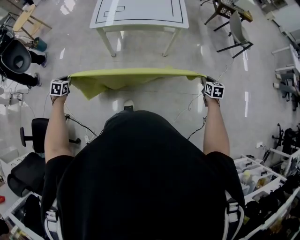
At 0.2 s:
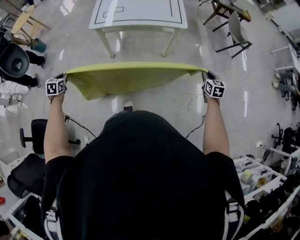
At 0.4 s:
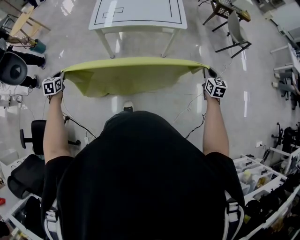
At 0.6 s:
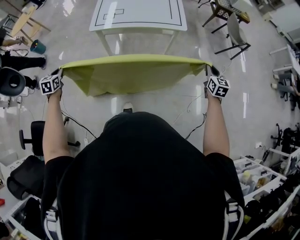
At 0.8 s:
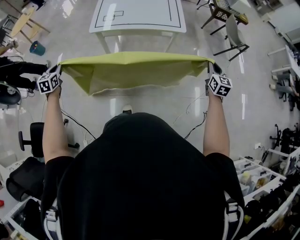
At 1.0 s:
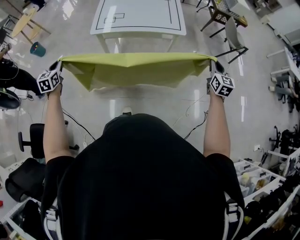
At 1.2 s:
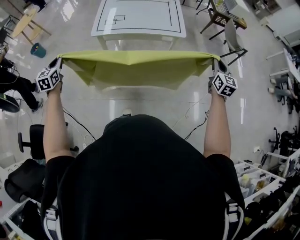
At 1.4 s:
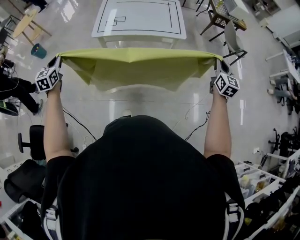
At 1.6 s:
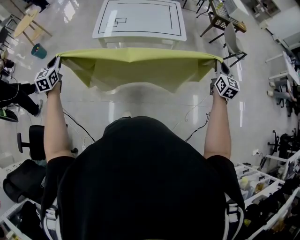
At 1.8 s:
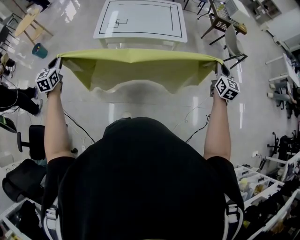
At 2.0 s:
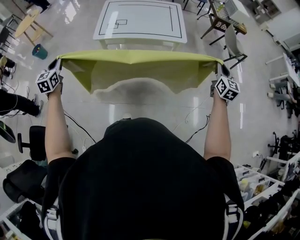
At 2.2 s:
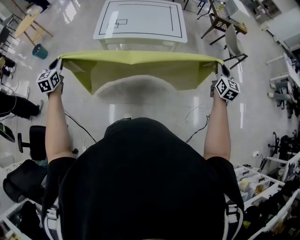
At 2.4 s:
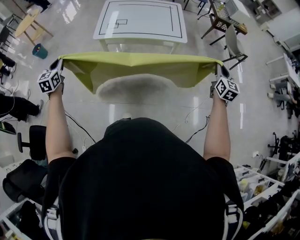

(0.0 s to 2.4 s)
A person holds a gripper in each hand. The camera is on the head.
0.0 s - 1.2 s: The left gripper travels upward and forward by about 20 cm, and points its fingers some 30 degrees further upward, while the right gripper shifts approximately 25 cm upward, and points its fingers roughly 30 degrees further upward.
1.2 s - 2.4 s: The grippers move only a little.

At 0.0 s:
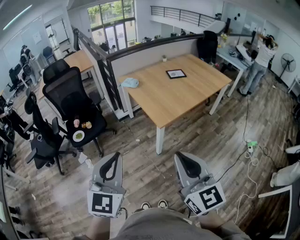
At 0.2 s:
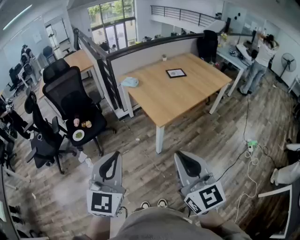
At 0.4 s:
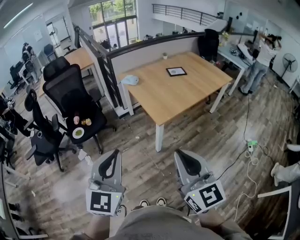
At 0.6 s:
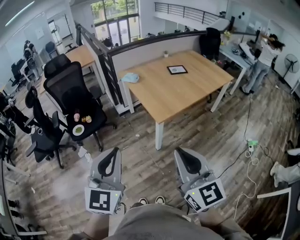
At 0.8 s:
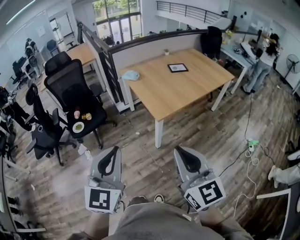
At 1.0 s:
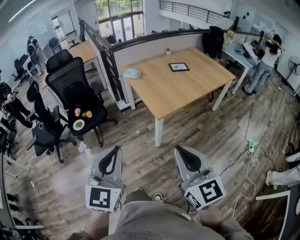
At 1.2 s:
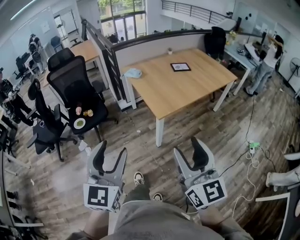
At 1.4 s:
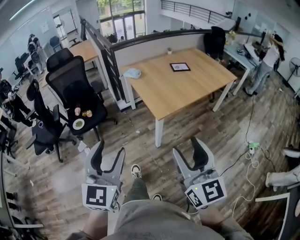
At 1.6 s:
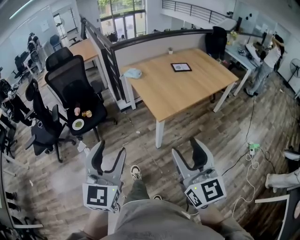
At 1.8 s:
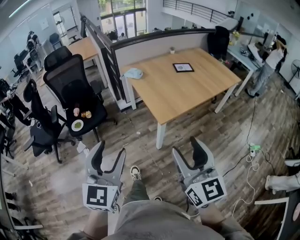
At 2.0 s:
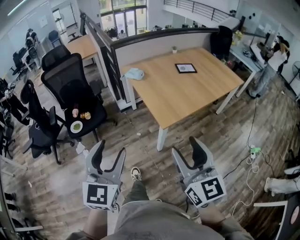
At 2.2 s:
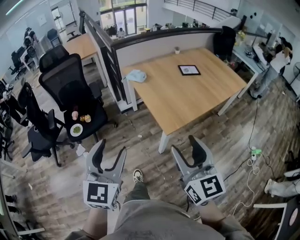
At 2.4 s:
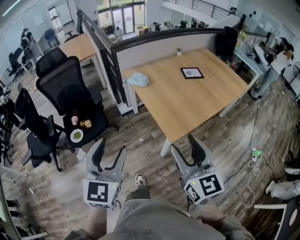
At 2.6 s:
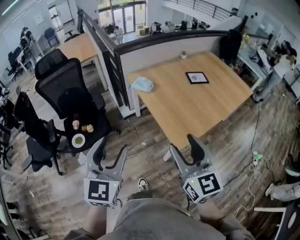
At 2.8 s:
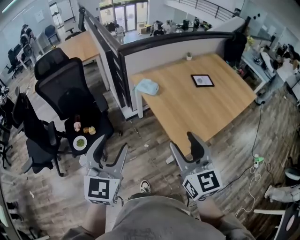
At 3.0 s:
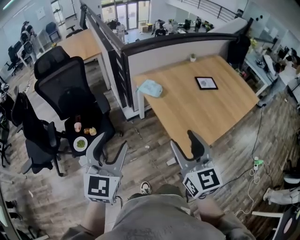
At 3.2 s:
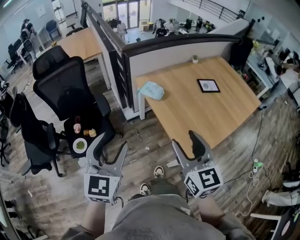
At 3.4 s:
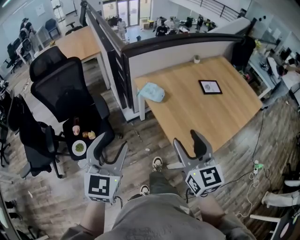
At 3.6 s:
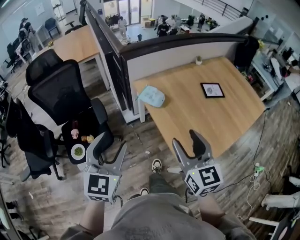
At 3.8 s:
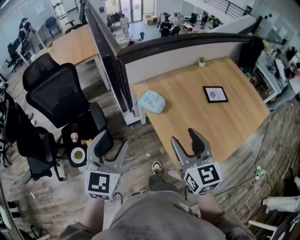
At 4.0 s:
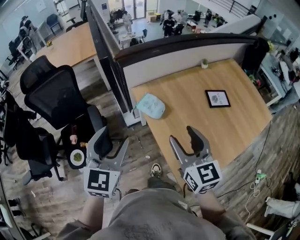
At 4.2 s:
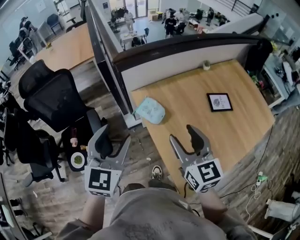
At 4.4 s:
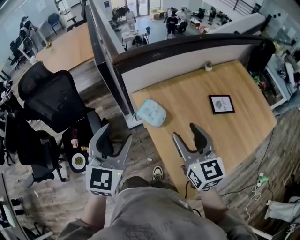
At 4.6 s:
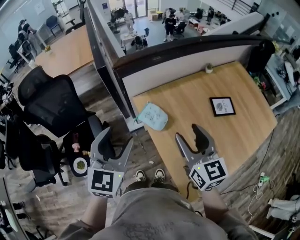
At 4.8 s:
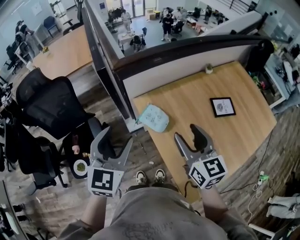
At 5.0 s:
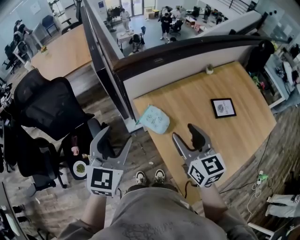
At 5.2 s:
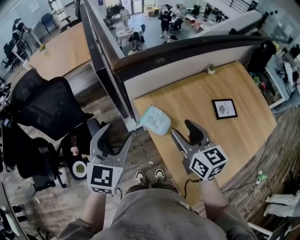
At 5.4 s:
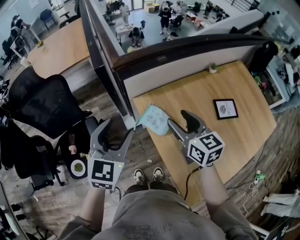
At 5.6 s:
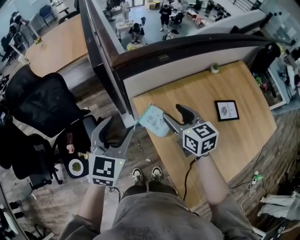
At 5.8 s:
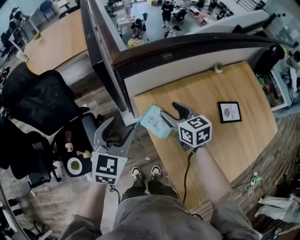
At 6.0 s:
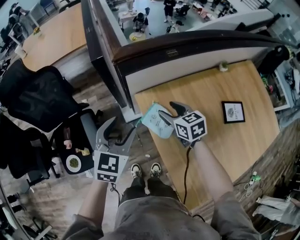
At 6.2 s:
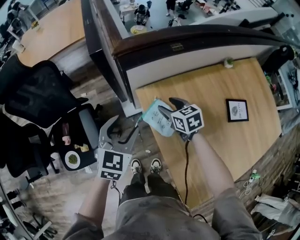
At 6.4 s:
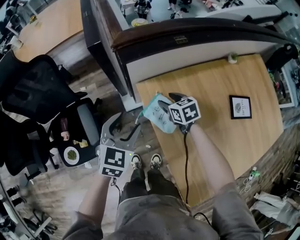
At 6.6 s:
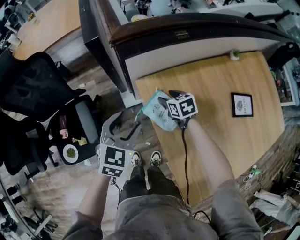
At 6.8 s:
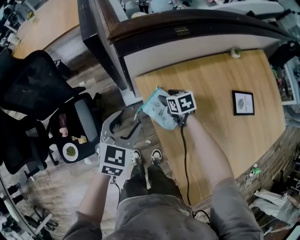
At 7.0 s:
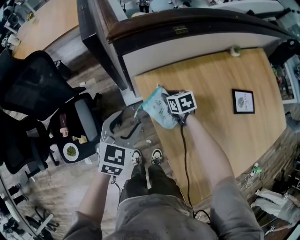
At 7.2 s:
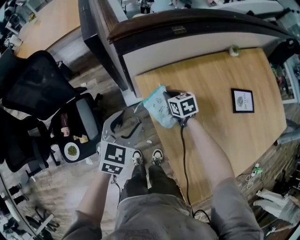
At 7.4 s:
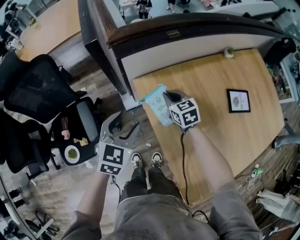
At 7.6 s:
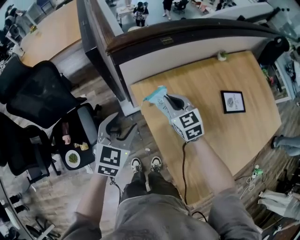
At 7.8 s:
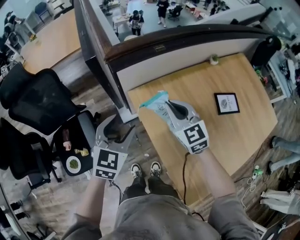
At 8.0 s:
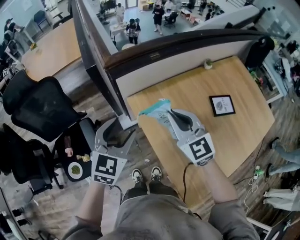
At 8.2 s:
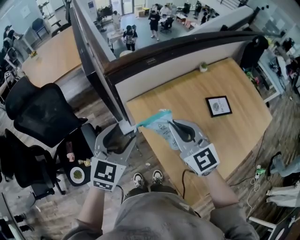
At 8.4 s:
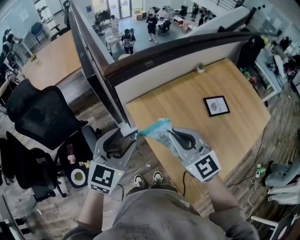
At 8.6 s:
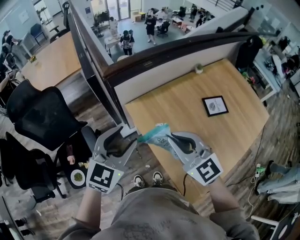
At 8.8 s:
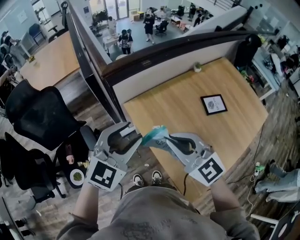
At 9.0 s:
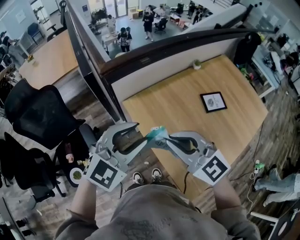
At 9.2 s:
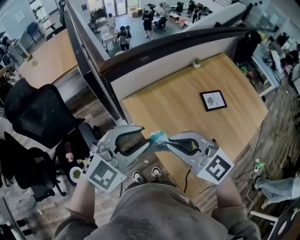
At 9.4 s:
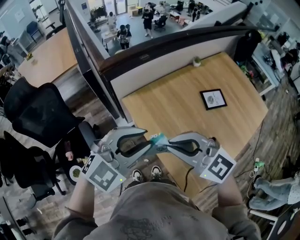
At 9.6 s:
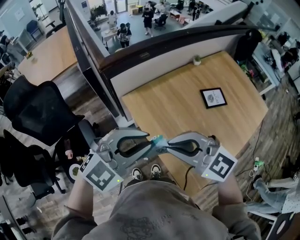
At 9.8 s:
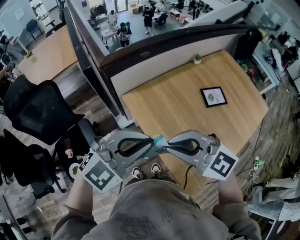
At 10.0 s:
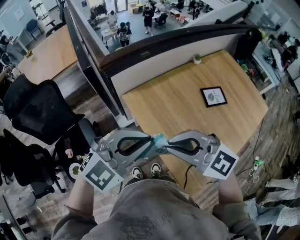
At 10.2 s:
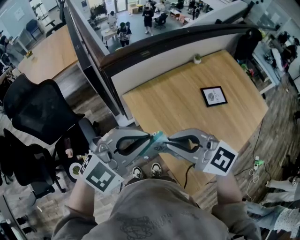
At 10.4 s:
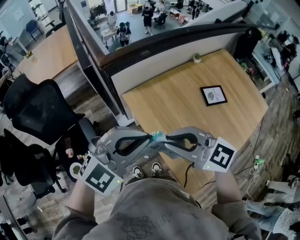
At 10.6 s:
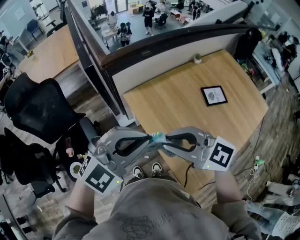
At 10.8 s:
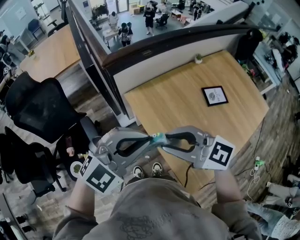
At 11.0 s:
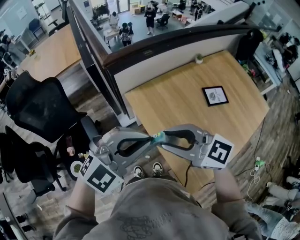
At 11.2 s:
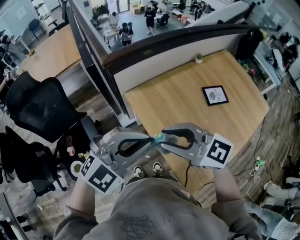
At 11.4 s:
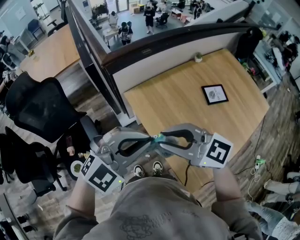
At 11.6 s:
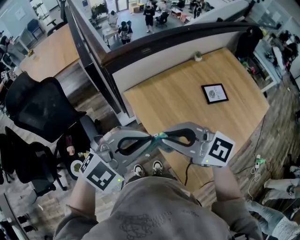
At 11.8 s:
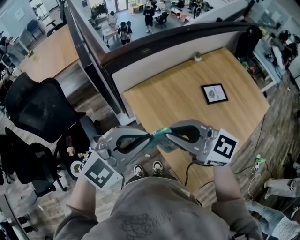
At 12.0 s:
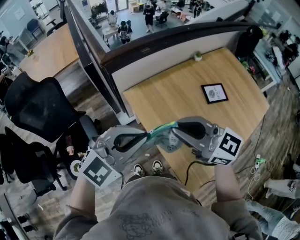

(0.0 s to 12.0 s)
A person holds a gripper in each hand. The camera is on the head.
0.0 s - 1.6 s: The left gripper opens; the right gripper shifts about 5 cm to the right, and opens up.
1.6 s - 3.0 s: The pair of grippers is taken forward and to the left, roughly 40 cm.
3.0 s - 4.4 s: Both grippers travel together forward, about 35 cm.
4.4 s - 6.0 s: The grippers both shift forward and downward by some 25 cm. The right gripper changes its angle by approximately 30 degrees.
6.0 s - 7.6 s: The right gripper reaches about 15 cm downward, then returns, changes its angle by approximately 20 degrees, and closes up.
7.6 s - 9.0 s: The right gripper shifts approximately 30 cm backward and upward, and rotates some 20 degrees. The left gripper moves upward, backward and to the right, some 25 cm, and rotates roughly 40 degrees.
9.0 s - 10.4 s: The left gripper closes up.
10.4 s - 12.0 s: There are only small adjustments of the grippers.

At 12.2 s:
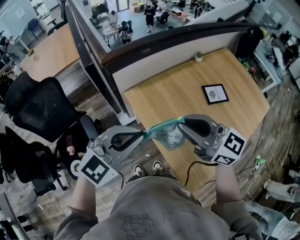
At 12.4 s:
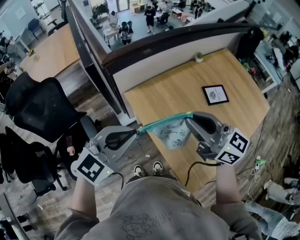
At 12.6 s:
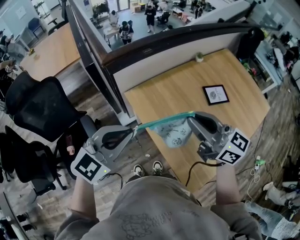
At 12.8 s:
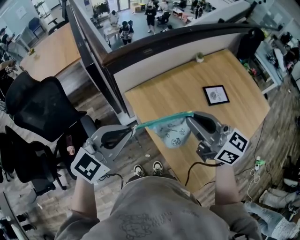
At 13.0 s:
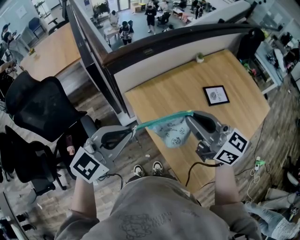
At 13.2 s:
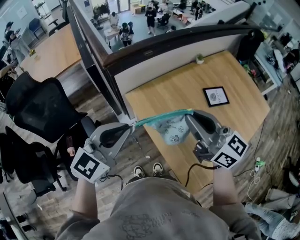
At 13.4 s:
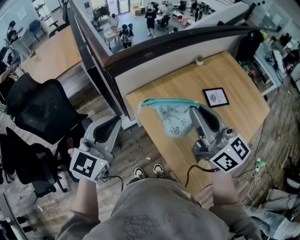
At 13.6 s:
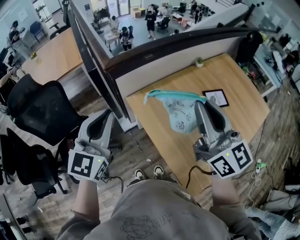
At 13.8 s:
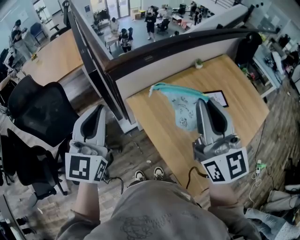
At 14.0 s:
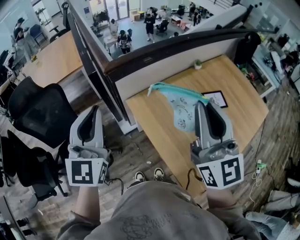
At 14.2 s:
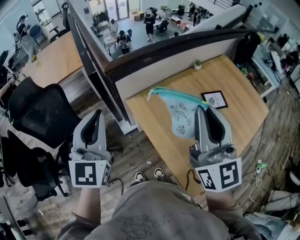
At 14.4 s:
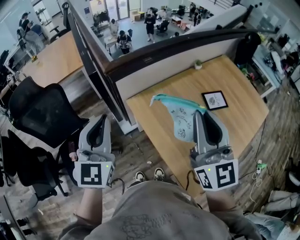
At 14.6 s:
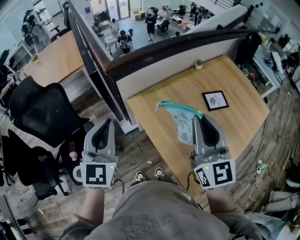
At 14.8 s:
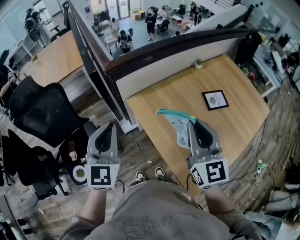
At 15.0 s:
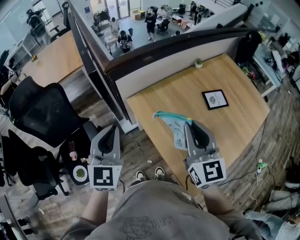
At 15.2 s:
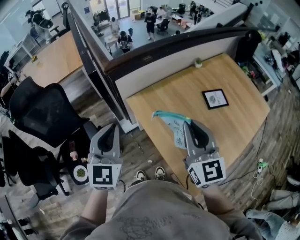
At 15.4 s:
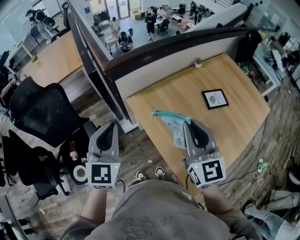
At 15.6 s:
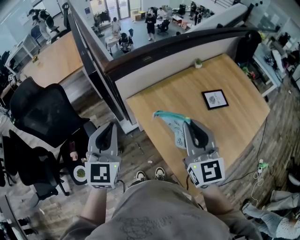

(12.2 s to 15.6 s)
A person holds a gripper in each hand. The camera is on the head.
12.2 s - 13.8 s: The left gripper goes approximately 15 cm to the left, upward and forward, and swivels about 50 degrees. The right gripper heads upward, covering some 10 cm, and swivels about 40 degrees.
13.8 s - 15.6 s: The grippers both shift downward by approximately 10 cm.

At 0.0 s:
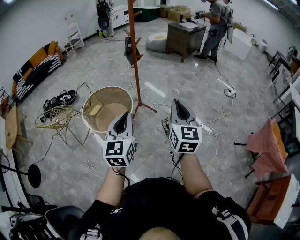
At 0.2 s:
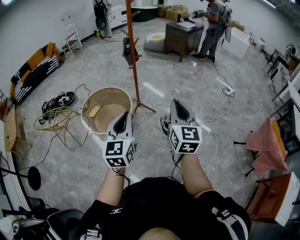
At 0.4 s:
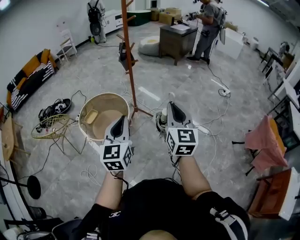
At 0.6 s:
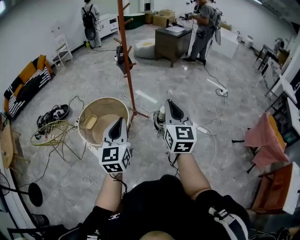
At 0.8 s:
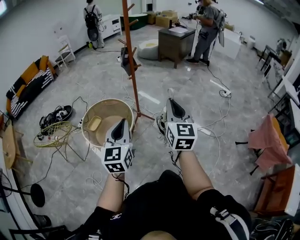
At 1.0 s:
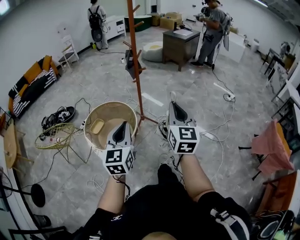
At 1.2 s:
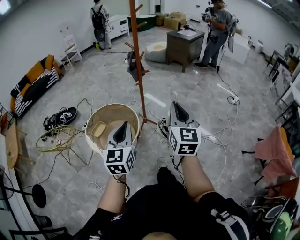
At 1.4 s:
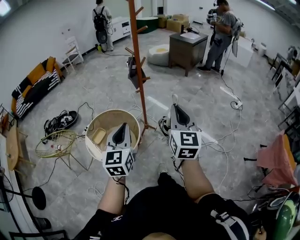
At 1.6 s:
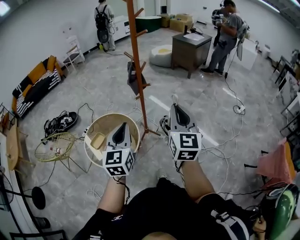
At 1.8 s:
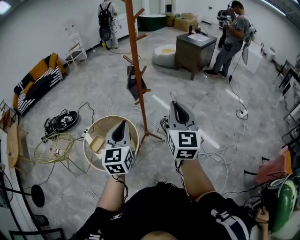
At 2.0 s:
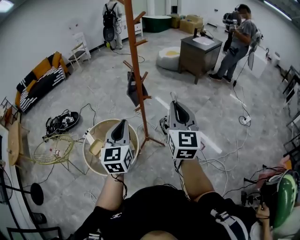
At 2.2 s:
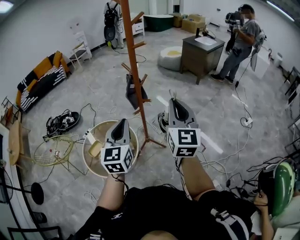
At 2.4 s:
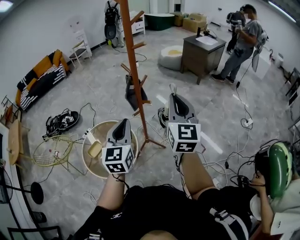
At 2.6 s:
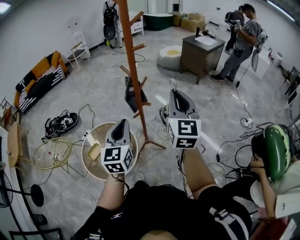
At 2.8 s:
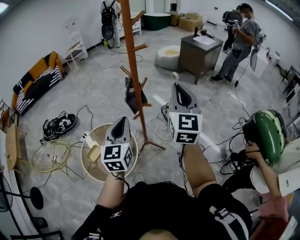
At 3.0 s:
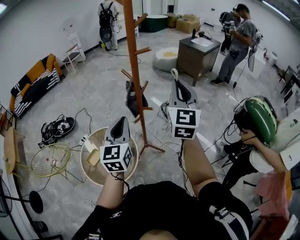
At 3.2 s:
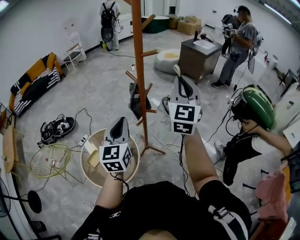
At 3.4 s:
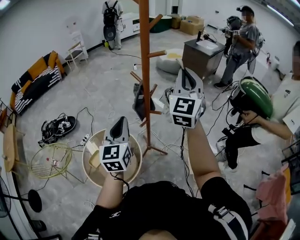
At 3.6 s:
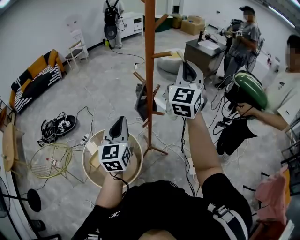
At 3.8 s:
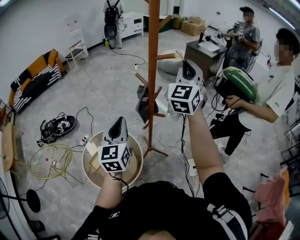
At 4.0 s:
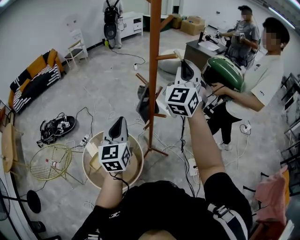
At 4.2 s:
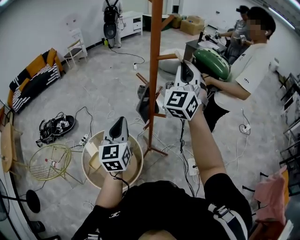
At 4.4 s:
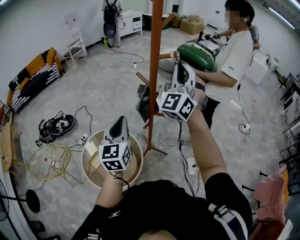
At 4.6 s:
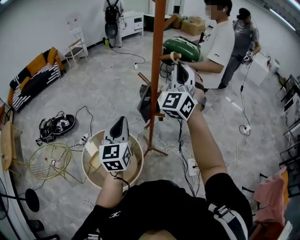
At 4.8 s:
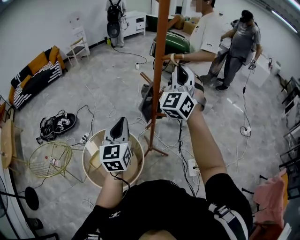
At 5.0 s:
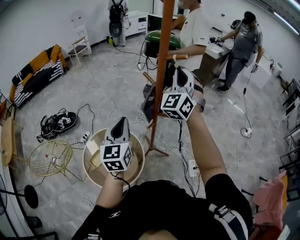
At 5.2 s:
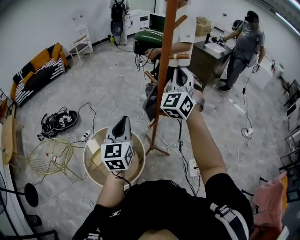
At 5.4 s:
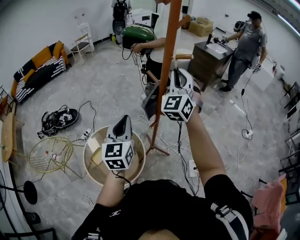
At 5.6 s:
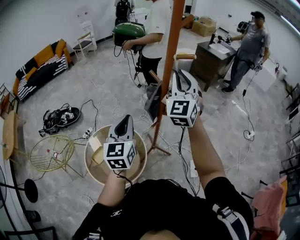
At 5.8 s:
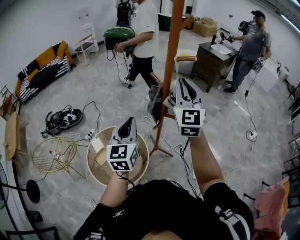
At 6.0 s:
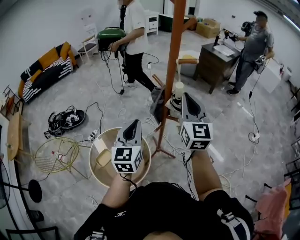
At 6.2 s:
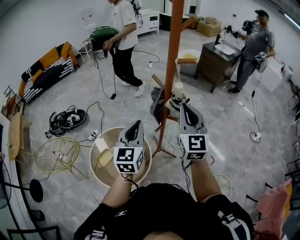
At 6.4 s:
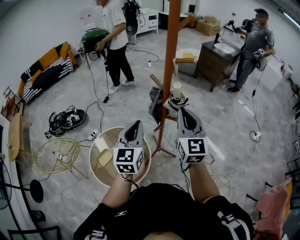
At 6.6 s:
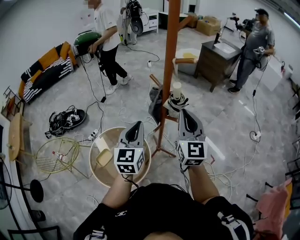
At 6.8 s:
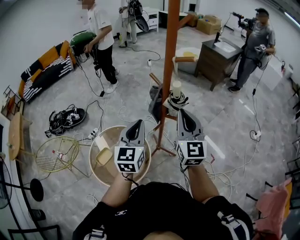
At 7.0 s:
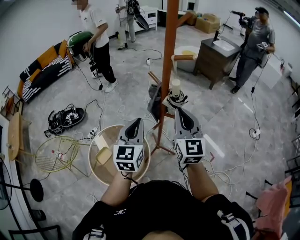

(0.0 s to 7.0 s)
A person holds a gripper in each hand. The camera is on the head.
0.0 s - 1.4 s: Both grippers travel together forward and to the left, some 25 cm.
1.4 s - 2.8 s: The grippers both shift forward by approximately 35 cm.
2.8 s - 4.2 s: The left gripper shifts roughly 15 cm to the left and forward, while the right gripper is displaced forward, to the left and upward by some 20 cm, and rotates approximately 40 degrees.
4.2 s - 5.6 s: The right gripper goes about 10 cm to the left and downward.
5.6 s - 7.0 s: The right gripper travels downward and backward by roughly 15 cm, and changes its angle by about 30 degrees, while the left gripper shifts by approximately 5 cm.
